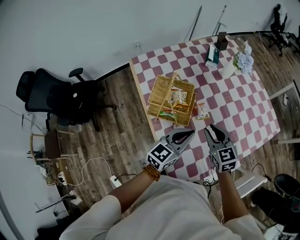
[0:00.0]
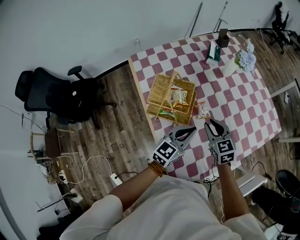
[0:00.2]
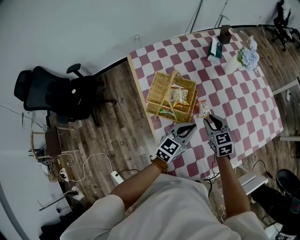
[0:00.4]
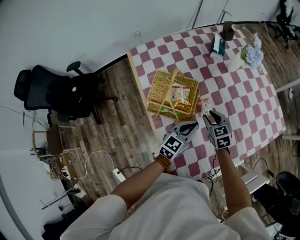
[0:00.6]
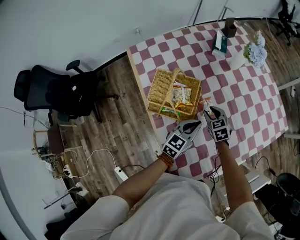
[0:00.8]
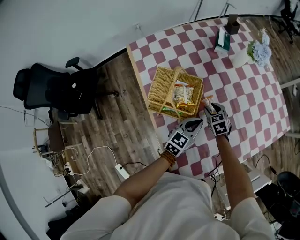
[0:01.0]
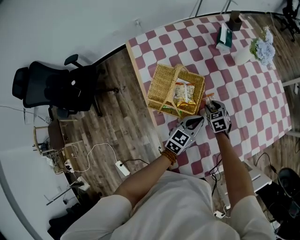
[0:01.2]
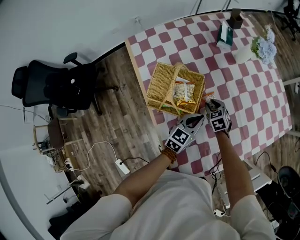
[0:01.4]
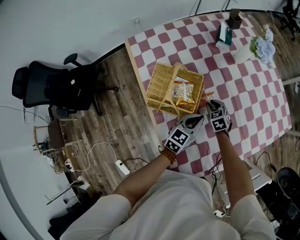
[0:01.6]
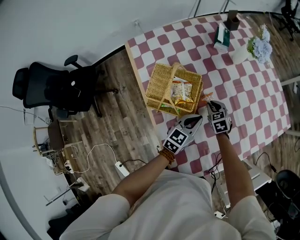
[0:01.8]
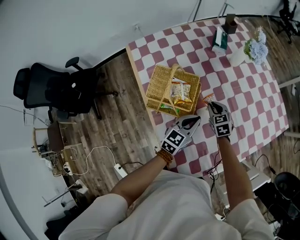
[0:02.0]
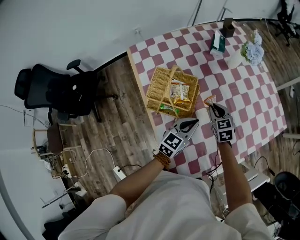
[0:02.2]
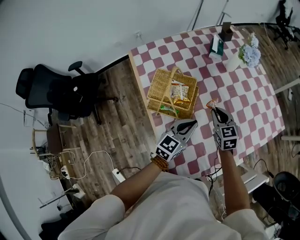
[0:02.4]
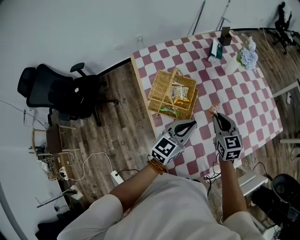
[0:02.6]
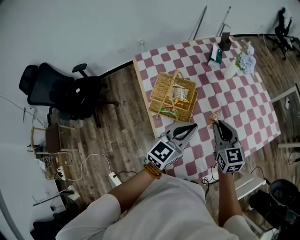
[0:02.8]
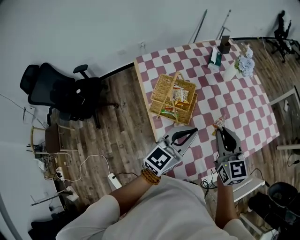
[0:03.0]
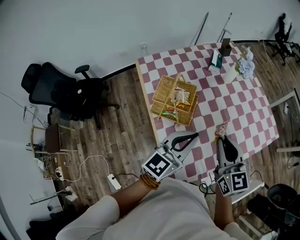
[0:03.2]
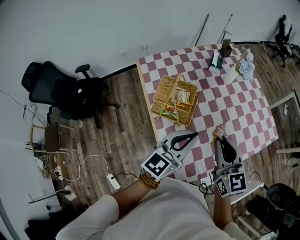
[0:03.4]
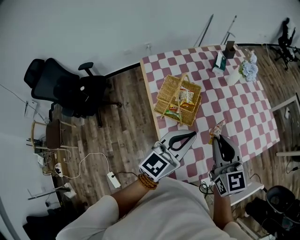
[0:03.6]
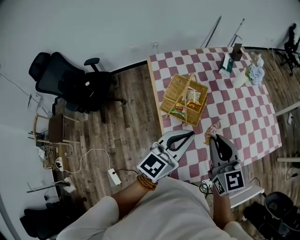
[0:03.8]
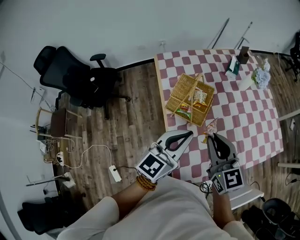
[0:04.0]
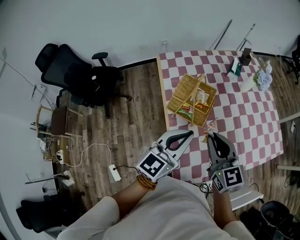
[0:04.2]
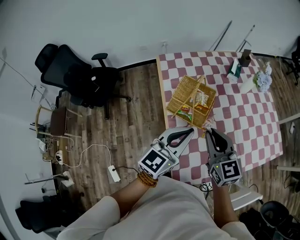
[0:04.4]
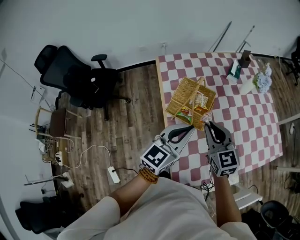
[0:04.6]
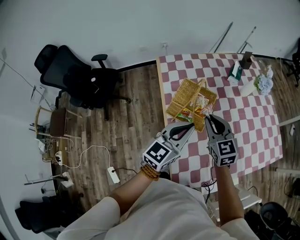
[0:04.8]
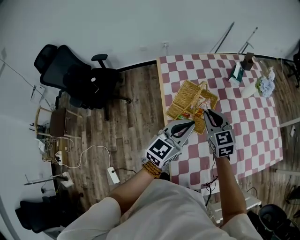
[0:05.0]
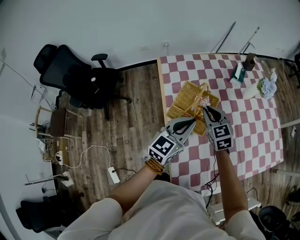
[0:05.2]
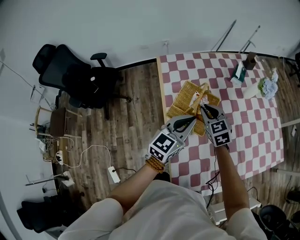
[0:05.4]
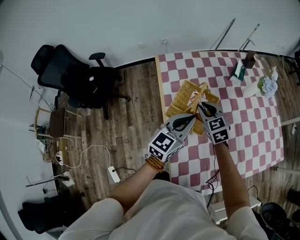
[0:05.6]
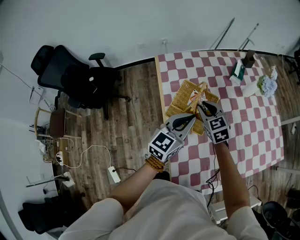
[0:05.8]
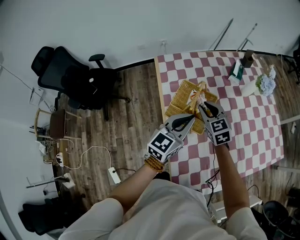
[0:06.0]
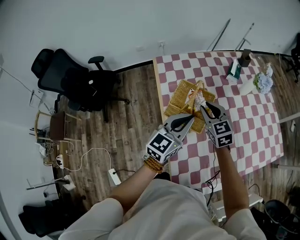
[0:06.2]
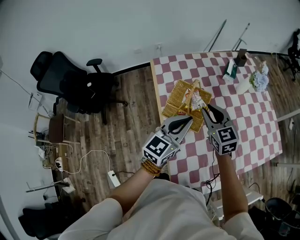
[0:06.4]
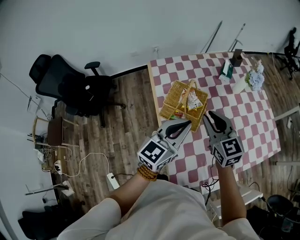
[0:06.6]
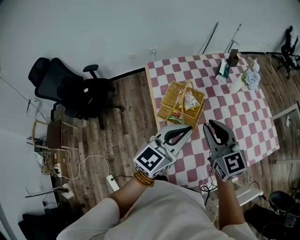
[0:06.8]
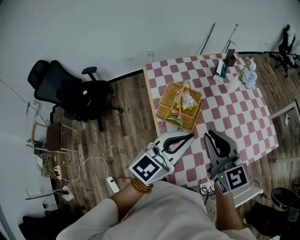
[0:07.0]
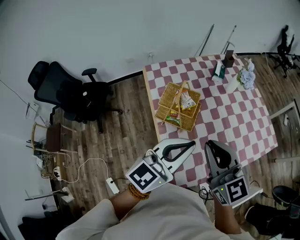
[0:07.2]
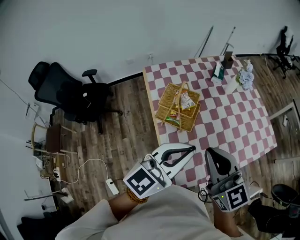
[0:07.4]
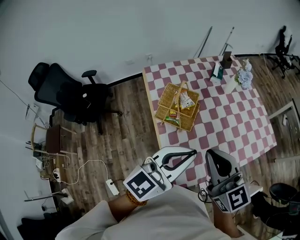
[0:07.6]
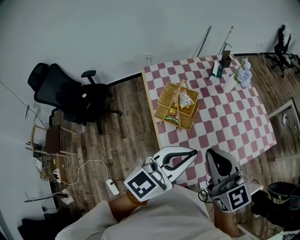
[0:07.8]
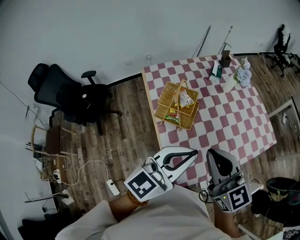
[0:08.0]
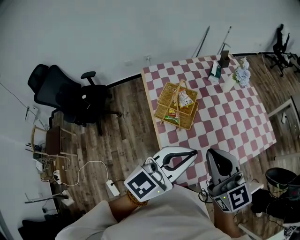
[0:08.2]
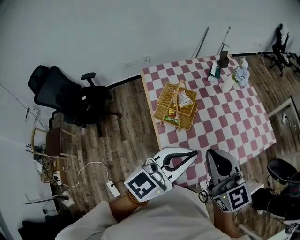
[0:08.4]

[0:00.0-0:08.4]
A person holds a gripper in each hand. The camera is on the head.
0:00.0 to 0:01.4: The right gripper travels downward and forward by approximately 30 cm, and swivels some 30 degrees, while the left gripper is displaced downward and forward by roughly 20 cm.
0:01.4 to 0:02.8: The right gripper is displaced upward and backward by roughly 30 cm, tips its fingers upward by about 30 degrees, and closes; the left gripper shifts approximately 20 cm upward.
0:02.8 to 0:04.2: The left gripper travels to the left, backward and upward by about 15 cm; the right gripper moves to the left, upward and backward, some 15 cm.
0:04.2 to 0:05.6: The left gripper is displaced forward and downward by about 15 cm, while the right gripper moves forward and downward, some 25 cm, and rotates about 30 degrees.
0:05.6 to 0:07.0: The left gripper shifts about 20 cm backward, upward and to the right. The right gripper moves upward and backward, about 30 cm, and swivels approximately 30 degrees.
0:07.0 to 0:08.4: The two grippers go approximately 10 cm backward.

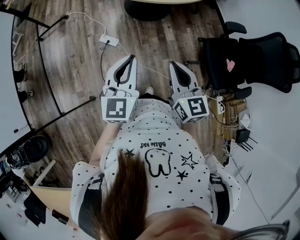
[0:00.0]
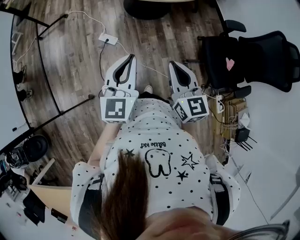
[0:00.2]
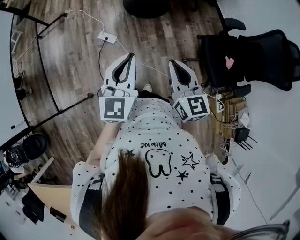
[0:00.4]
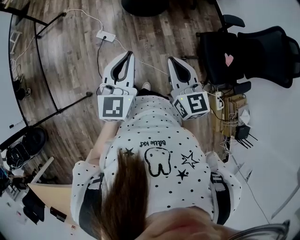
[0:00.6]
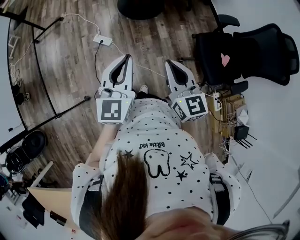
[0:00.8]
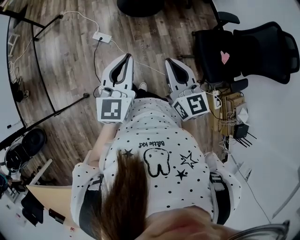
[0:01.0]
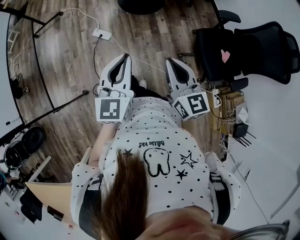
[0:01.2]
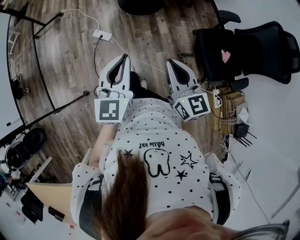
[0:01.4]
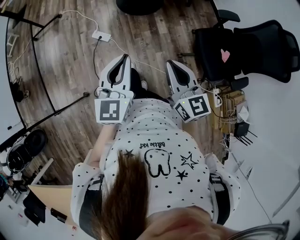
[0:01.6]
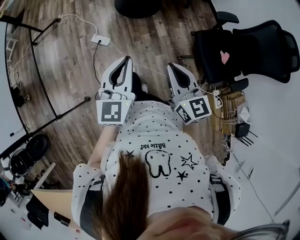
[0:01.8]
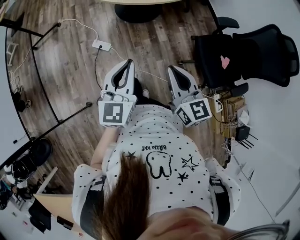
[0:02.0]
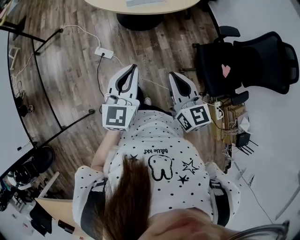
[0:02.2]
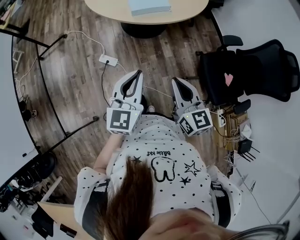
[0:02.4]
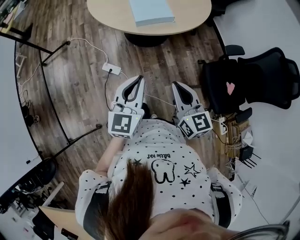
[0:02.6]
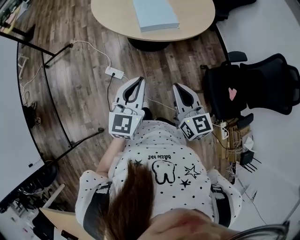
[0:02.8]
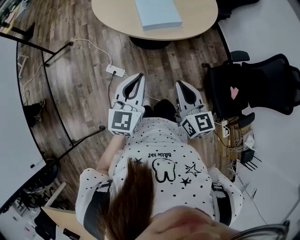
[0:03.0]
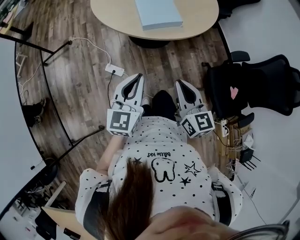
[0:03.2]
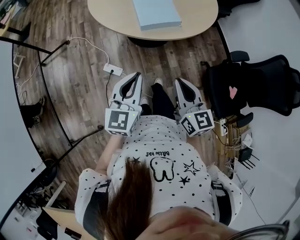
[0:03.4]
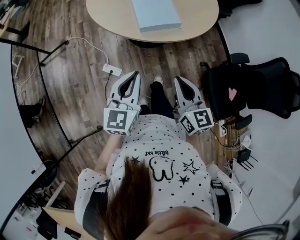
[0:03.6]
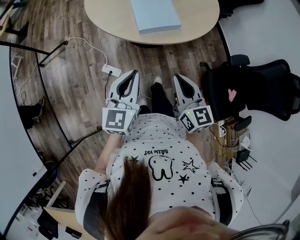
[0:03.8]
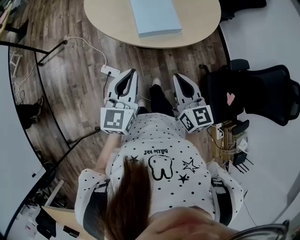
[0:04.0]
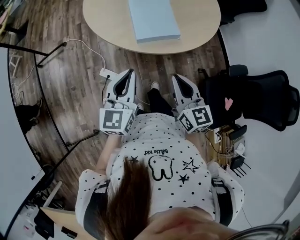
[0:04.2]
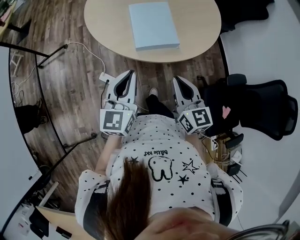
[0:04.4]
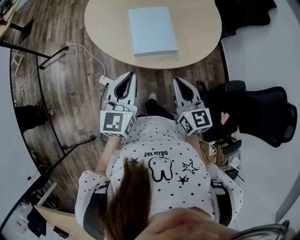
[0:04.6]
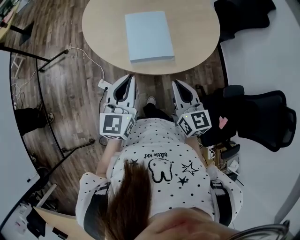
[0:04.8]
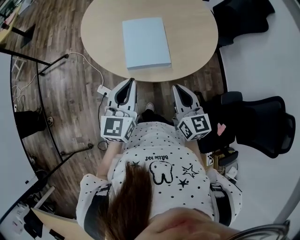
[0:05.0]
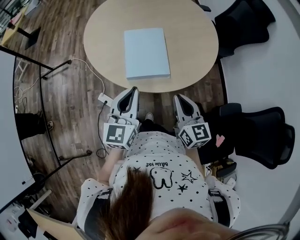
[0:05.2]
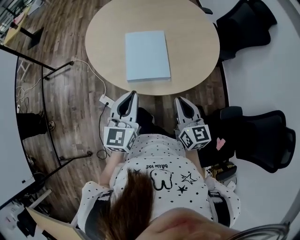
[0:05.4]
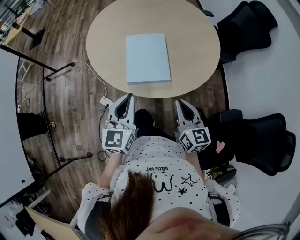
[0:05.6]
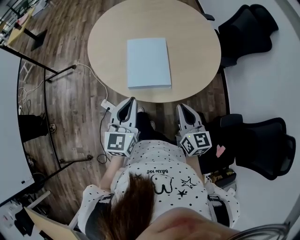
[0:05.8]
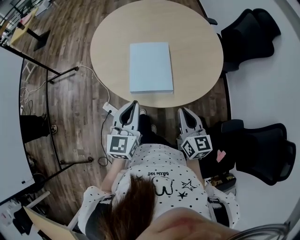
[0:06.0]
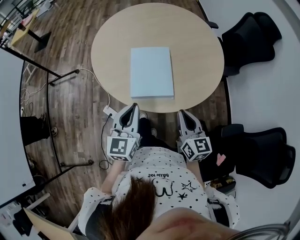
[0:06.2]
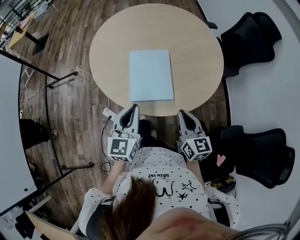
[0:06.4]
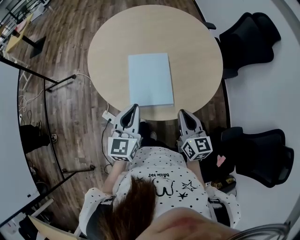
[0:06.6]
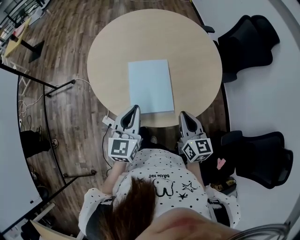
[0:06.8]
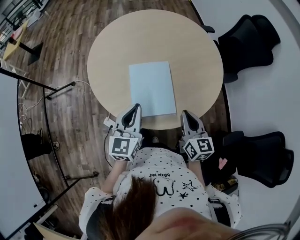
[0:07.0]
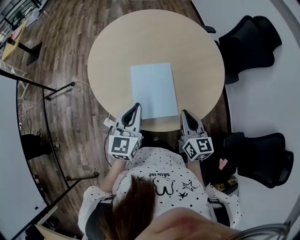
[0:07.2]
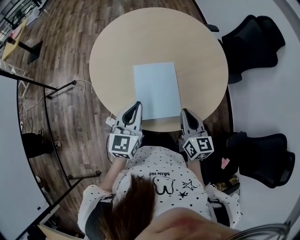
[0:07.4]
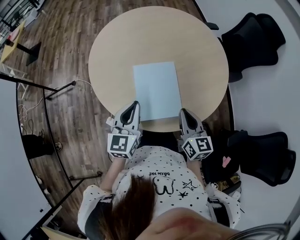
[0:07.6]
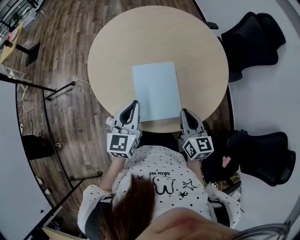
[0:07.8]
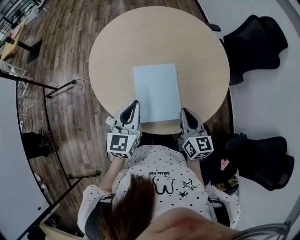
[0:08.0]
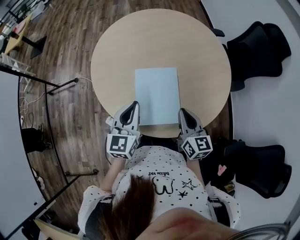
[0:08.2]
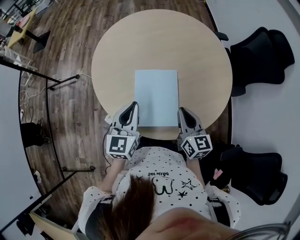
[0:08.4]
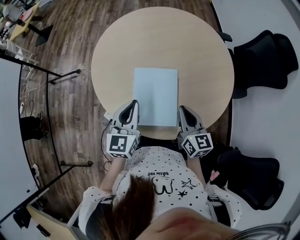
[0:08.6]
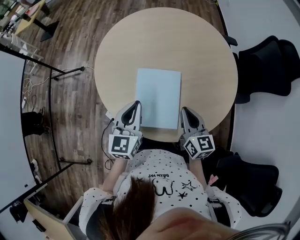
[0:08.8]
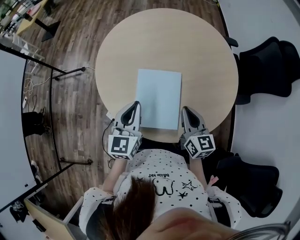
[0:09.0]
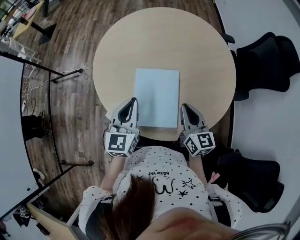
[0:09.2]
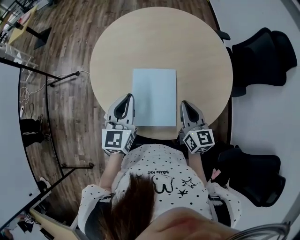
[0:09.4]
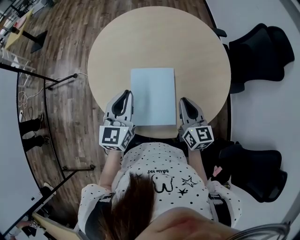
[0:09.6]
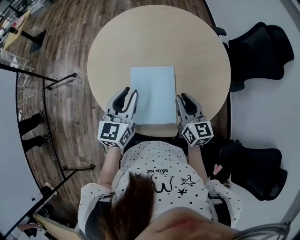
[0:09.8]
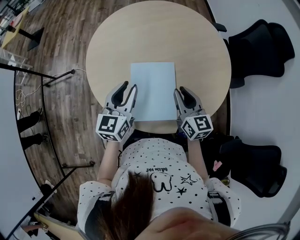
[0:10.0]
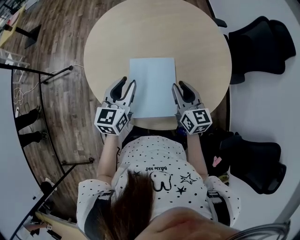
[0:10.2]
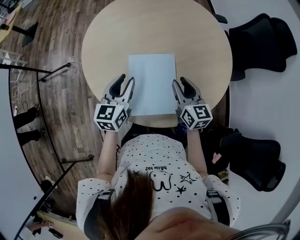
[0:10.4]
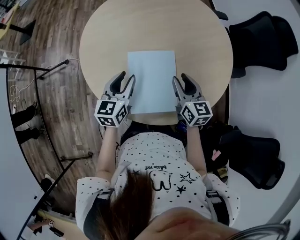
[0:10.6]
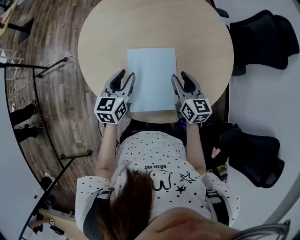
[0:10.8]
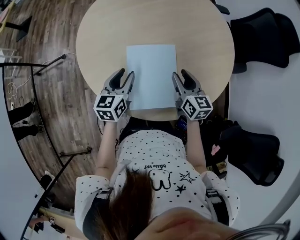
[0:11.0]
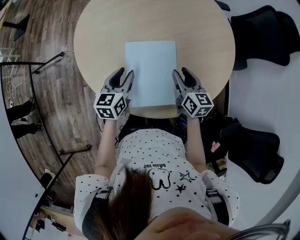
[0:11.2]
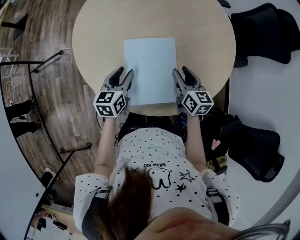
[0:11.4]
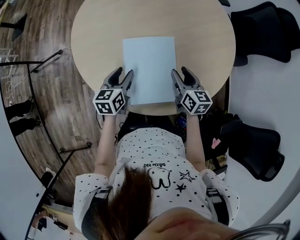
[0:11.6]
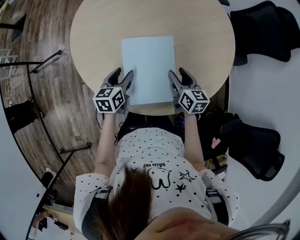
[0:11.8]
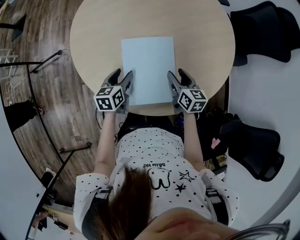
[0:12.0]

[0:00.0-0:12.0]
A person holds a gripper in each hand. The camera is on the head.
0:00.0 to 0:01.6: The left gripper goes about 5 cm to the right. The right gripper is displaced to the right and backward by some 10 cm.
0:01.6 to 0:03.0: The two grippers go some 20 cm forward.
0:03.0 to 0:04.4: Both grippers move forward, about 20 cm.
0:04.4 to 0:06.0: The grippers both shift to the right and forward by about 15 cm.
0:06.0 to 0:07.6: The grippers both shift forward by approximately 15 cm.
0:07.6 to 0:09.0: The right gripper is displaced forward by about 10 cm.
0:09.0 to 0:10.4: The left gripper goes approximately 10 cm forward and downward, and opens its fingers; the right gripper shifts roughly 5 cm forward, and opens up.
0:10.4 to 0:12.0: Both grippers travel together downward, some 15 cm. The left gripper changes its angle by some 20 degrees.

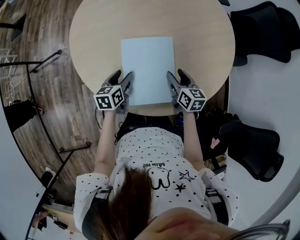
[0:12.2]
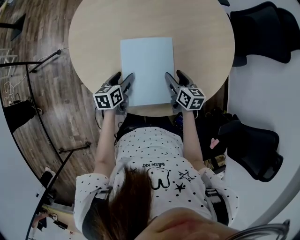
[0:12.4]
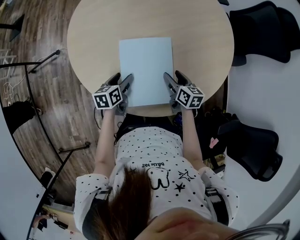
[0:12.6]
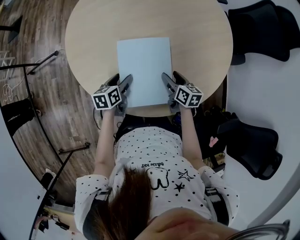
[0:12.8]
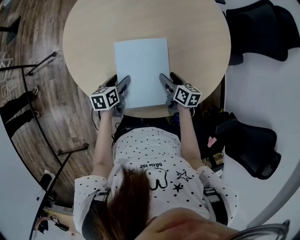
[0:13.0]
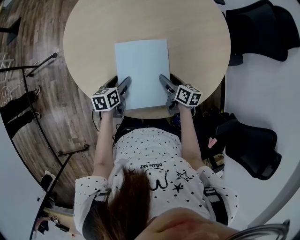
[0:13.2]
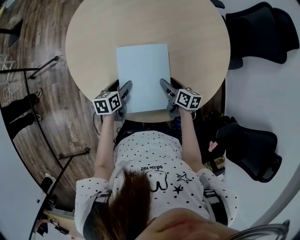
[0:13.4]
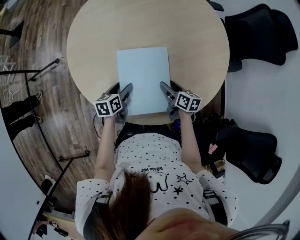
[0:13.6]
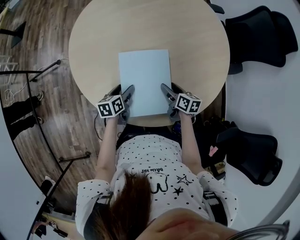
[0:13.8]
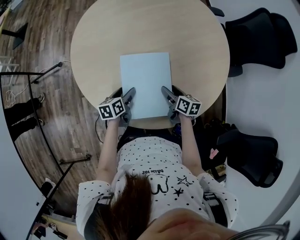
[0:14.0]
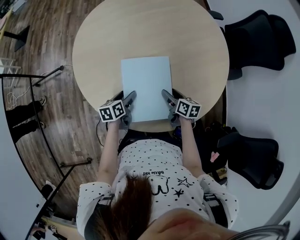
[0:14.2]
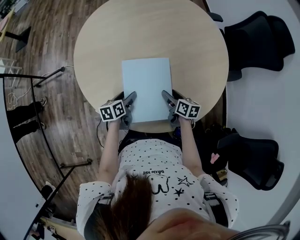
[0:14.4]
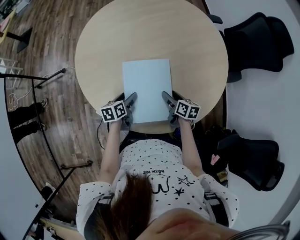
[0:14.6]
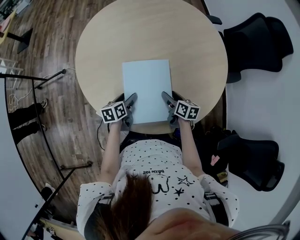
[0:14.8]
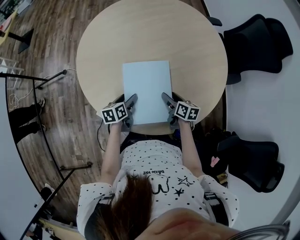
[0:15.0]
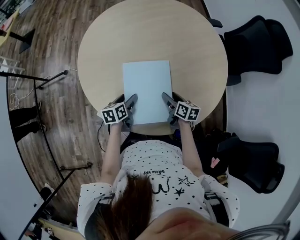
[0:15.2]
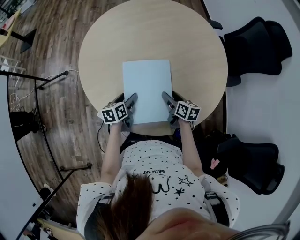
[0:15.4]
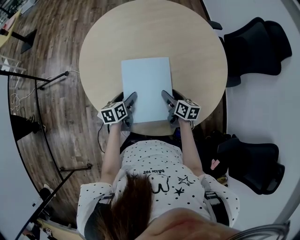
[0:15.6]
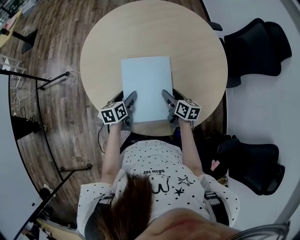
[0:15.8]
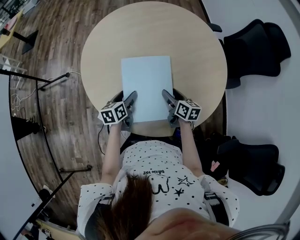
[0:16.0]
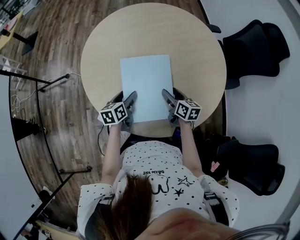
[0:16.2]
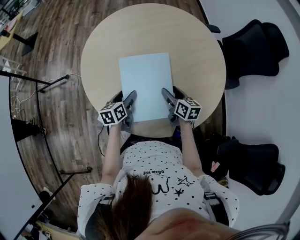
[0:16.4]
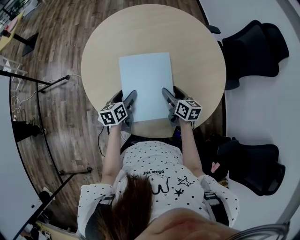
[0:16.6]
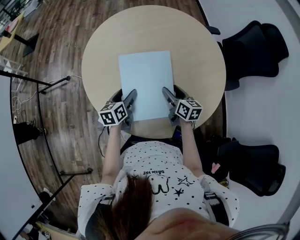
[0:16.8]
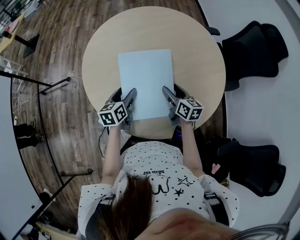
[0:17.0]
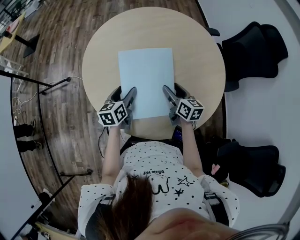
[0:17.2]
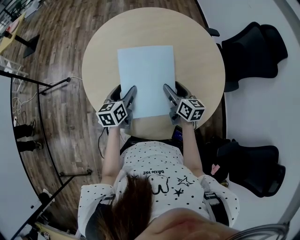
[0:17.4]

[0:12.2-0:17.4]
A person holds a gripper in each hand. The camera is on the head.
0:12.2 to 0:15.6: The grippers move only a little.
0:15.6 to 0:17.4: Both grippers move upward, roughly 10 cm.
